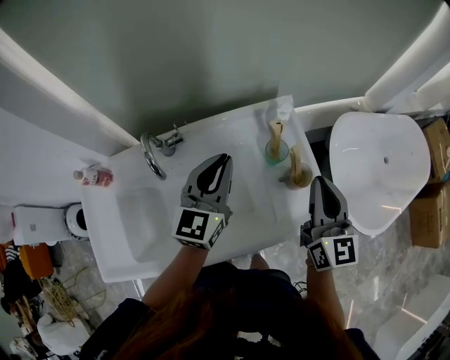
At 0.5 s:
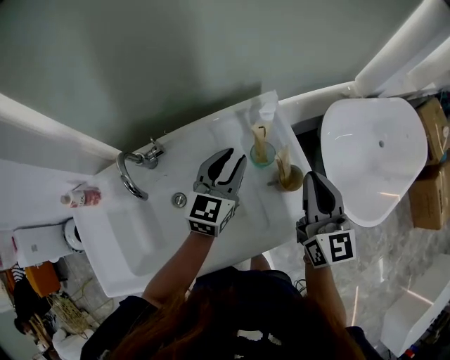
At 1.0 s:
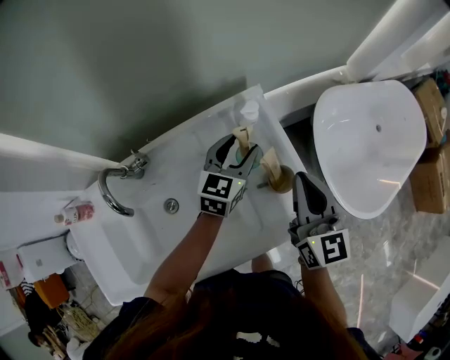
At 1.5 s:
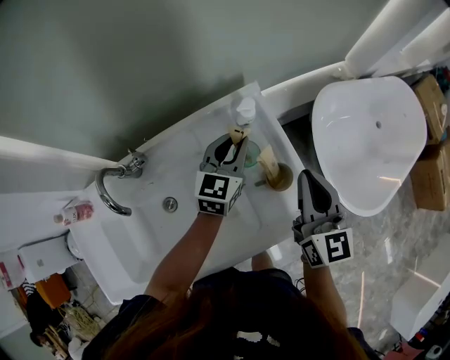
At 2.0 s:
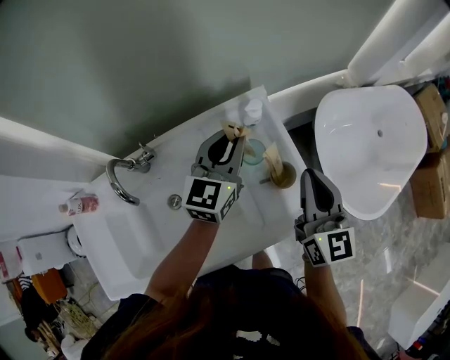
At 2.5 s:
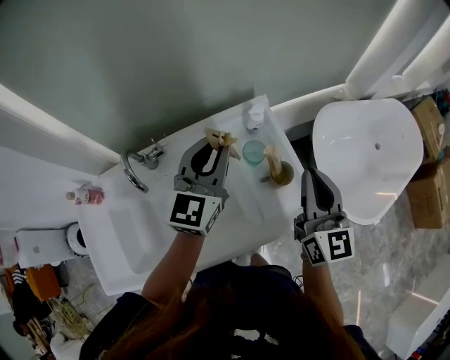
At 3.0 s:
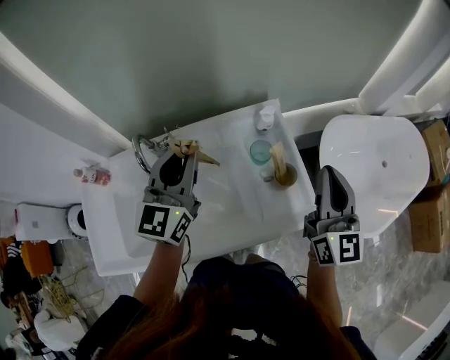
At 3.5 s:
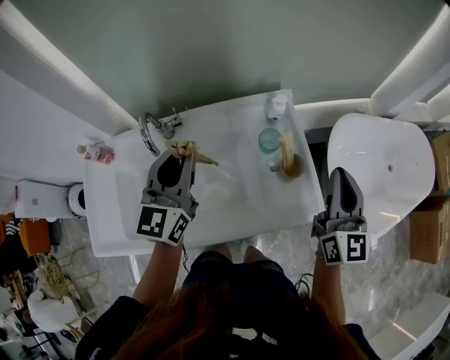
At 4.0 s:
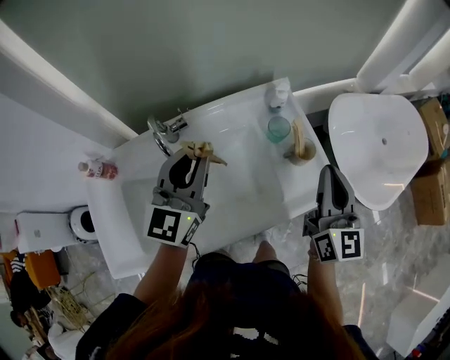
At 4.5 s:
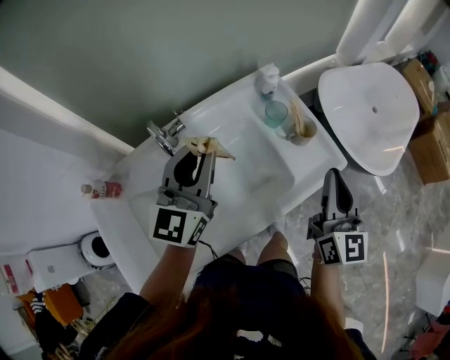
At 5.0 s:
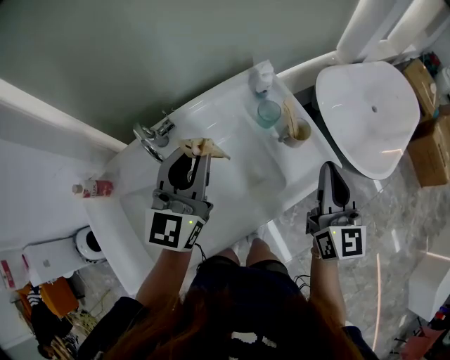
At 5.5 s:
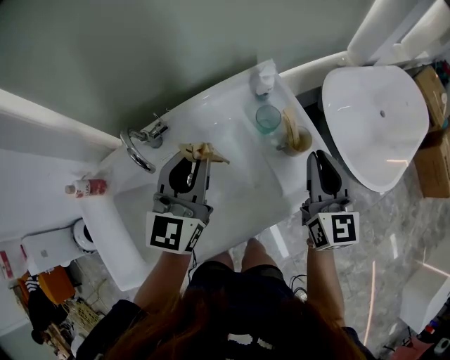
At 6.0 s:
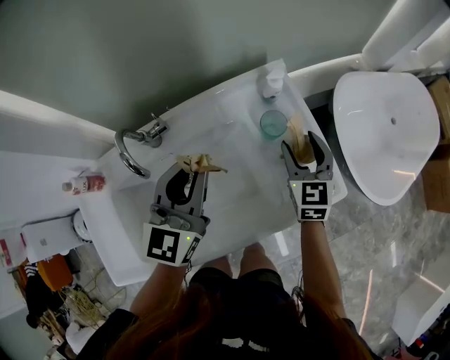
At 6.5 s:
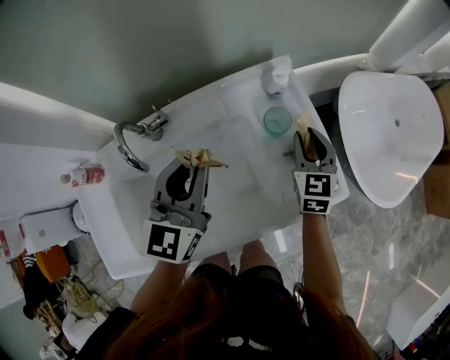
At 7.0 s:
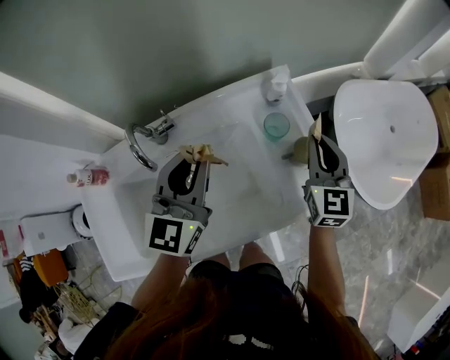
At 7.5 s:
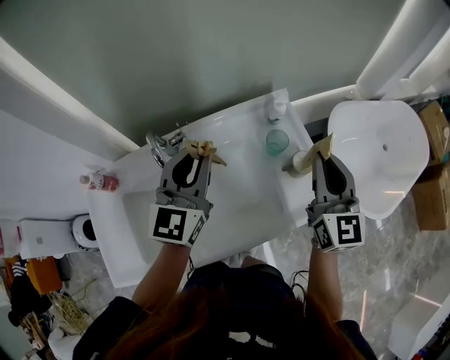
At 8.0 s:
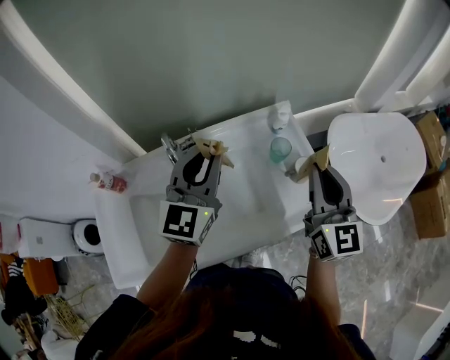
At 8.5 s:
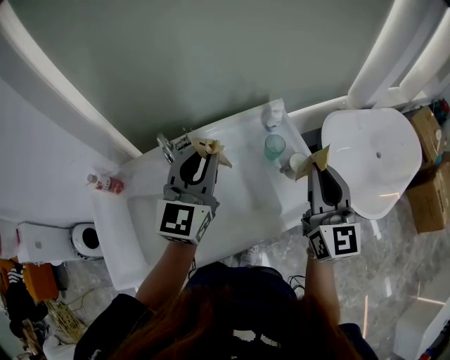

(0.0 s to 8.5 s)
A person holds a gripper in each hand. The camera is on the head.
0.0 s - 2.0 s: The left gripper goes roughly 15 cm forward and to the right, and opens, then closes again. The right gripper moves some 5 cm.
2.0 s - 4.0 s: The right gripper heads backward, covering roughly 10 cm; the left gripper goes approximately 25 cm backward, to the left and upward.
4.0 s - 6.5 s: The left gripper goes roughly 10 cm downward and forward. Meanwhile the right gripper travels downward and forward by about 25 cm, turns by roughly 30 degrees, and opens its fingers.
6.5 s - 8.5 s: The right gripper heads upward and backward, covering about 30 cm, and rotates roughly 30 degrees. The left gripper is displaced upward by some 10 cm.

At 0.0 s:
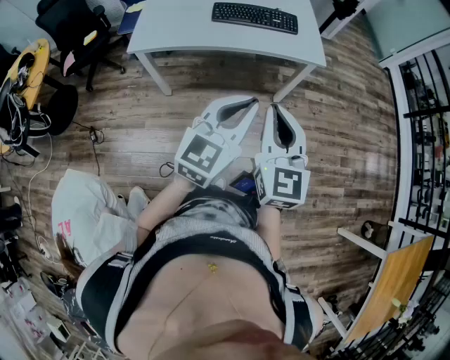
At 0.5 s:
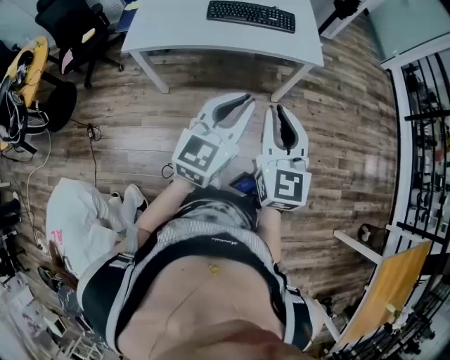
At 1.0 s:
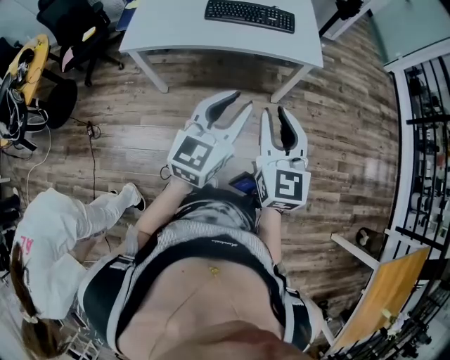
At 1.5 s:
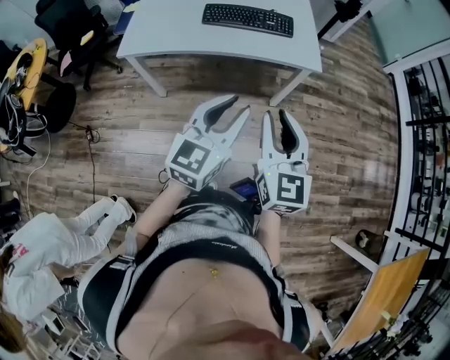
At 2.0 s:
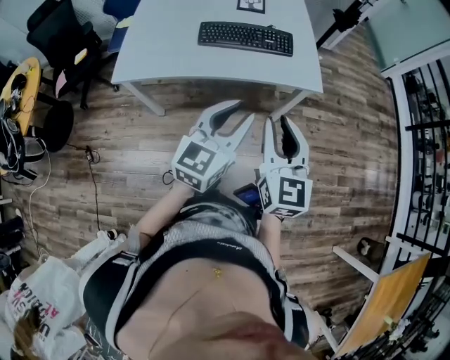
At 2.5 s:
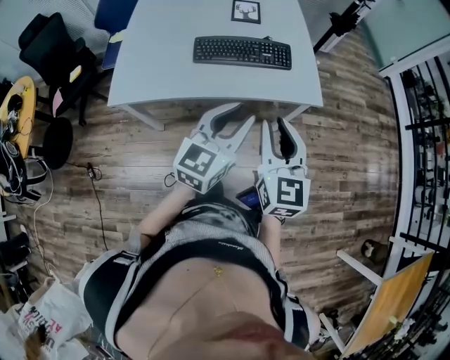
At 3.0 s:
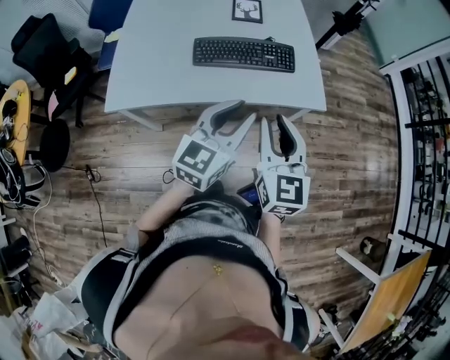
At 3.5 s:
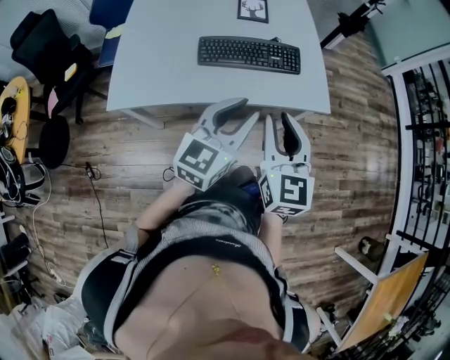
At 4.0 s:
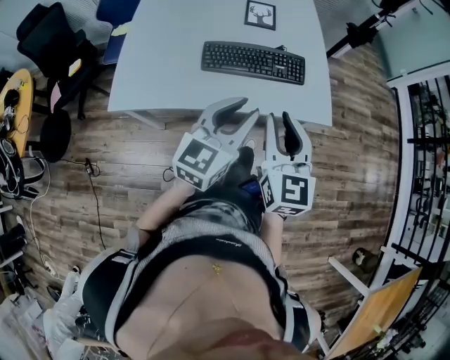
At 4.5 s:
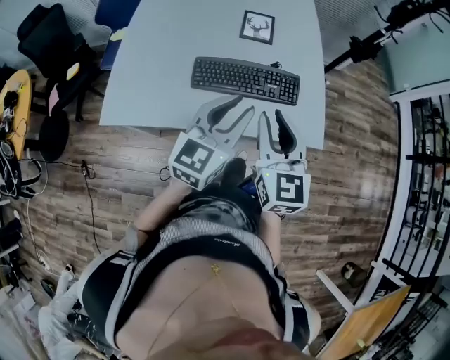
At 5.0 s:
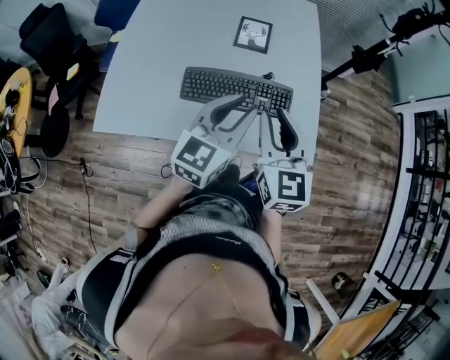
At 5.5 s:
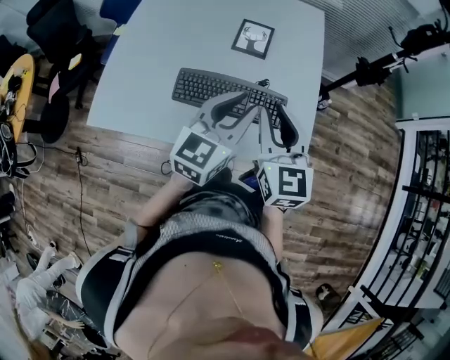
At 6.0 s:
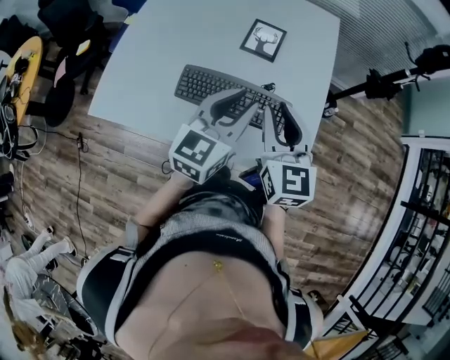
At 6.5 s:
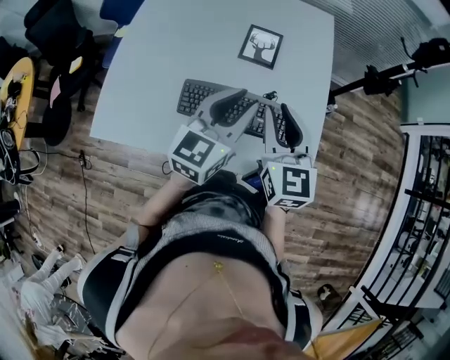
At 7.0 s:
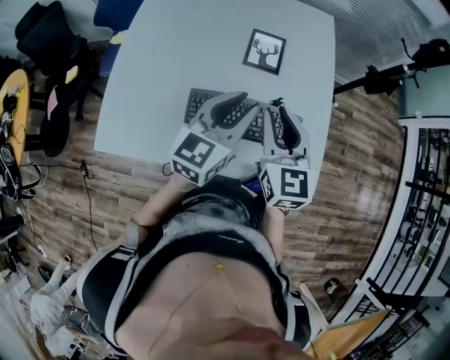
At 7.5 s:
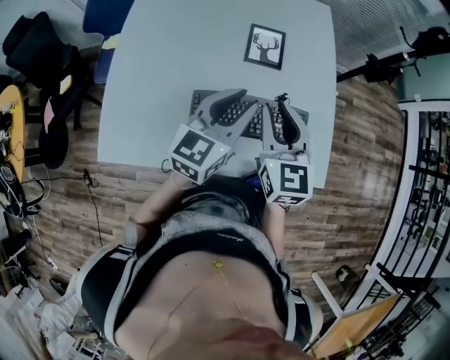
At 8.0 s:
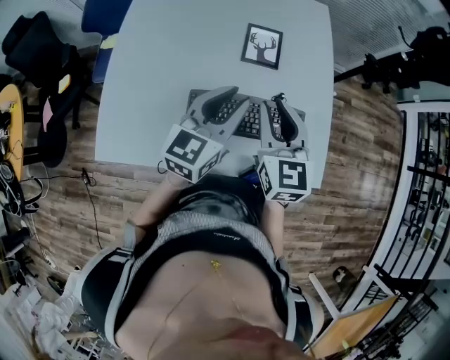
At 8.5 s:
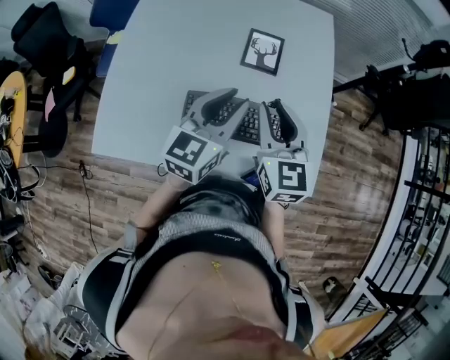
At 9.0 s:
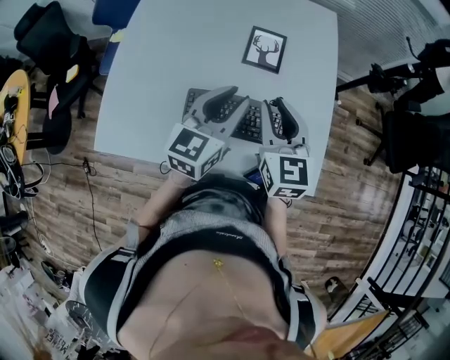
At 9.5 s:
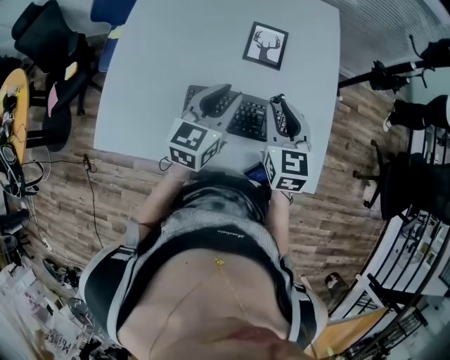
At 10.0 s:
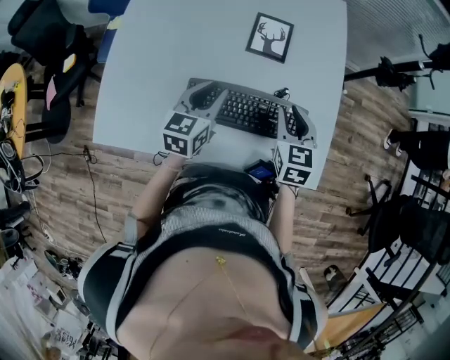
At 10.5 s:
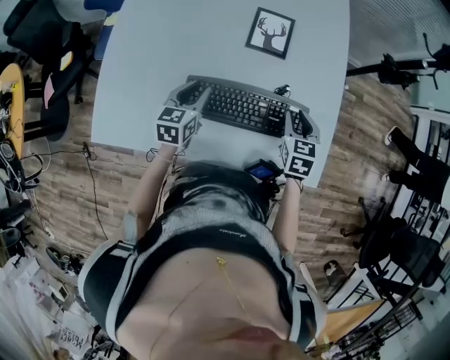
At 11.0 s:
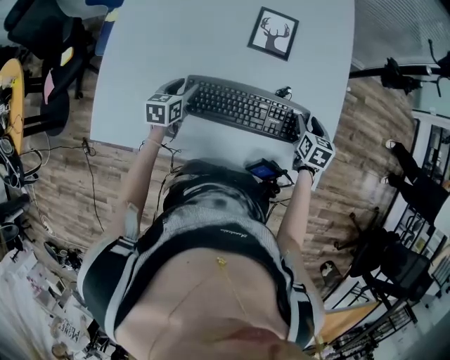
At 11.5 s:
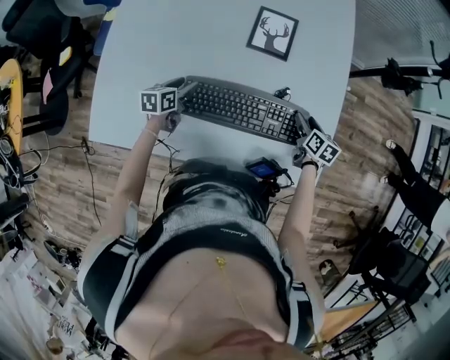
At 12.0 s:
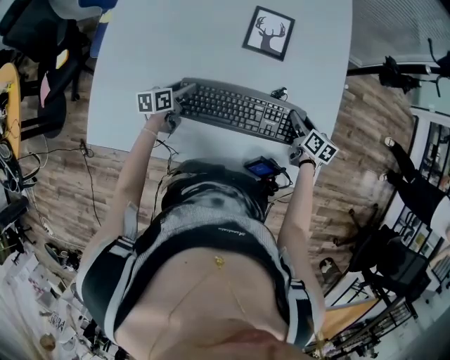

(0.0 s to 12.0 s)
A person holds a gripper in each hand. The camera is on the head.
0.0 s - 2.0 s: The two grippers go some 15 cm forward. The right gripper opens its fingers.
2.0 s - 4.0 s: The grippers both shift forward and to the left by some 20 cm.
4.0 s - 6.0 s: The grippers both shift forward by approximately 25 cm.
6.0 s - 8.0 s: Both grippers travel together to the left and forward, approximately 10 cm.
8.0 s - 10.0 s: The left gripper moves downward, roughly 10 cm. The right gripper goes approximately 15 cm downward and to the right.
10.0 s - 12.0 s: The left gripper goes some 25 cm downward and to the left, rotates some 40 degrees, and opens; the right gripper goes about 25 cm downward and to the right, changes its angle by roughly 40 degrees, and opens up.

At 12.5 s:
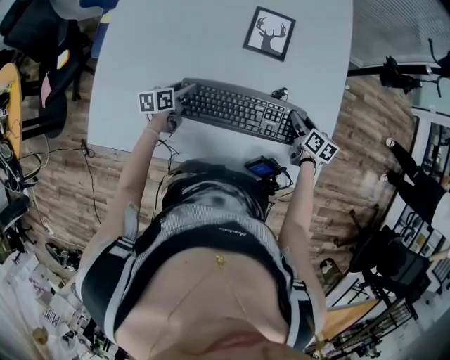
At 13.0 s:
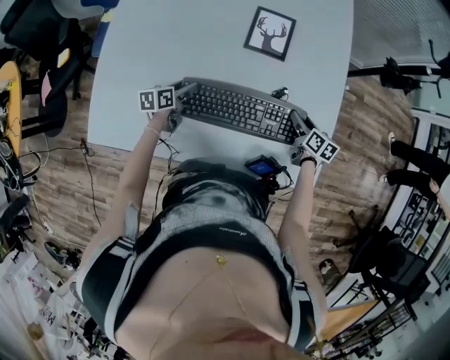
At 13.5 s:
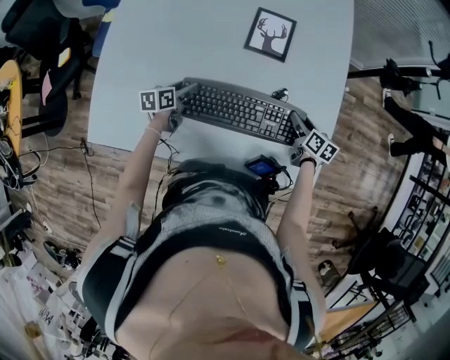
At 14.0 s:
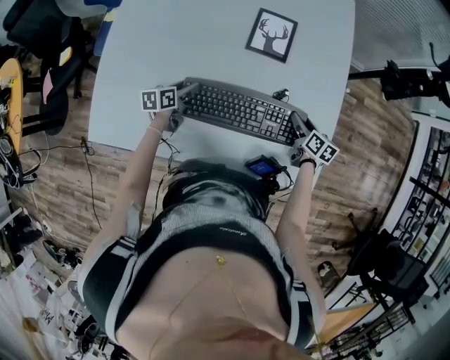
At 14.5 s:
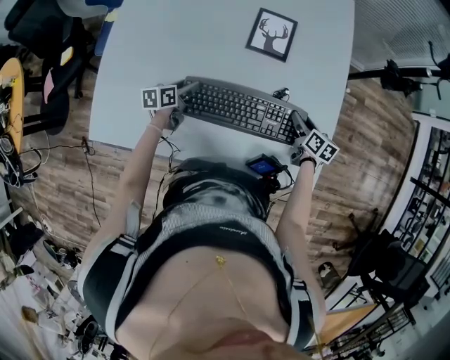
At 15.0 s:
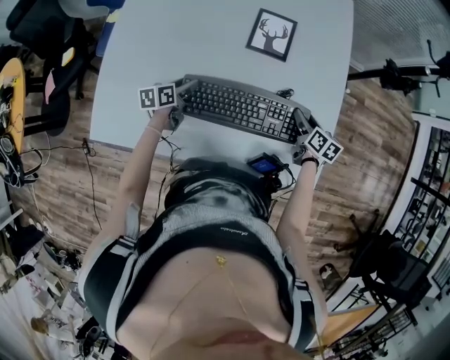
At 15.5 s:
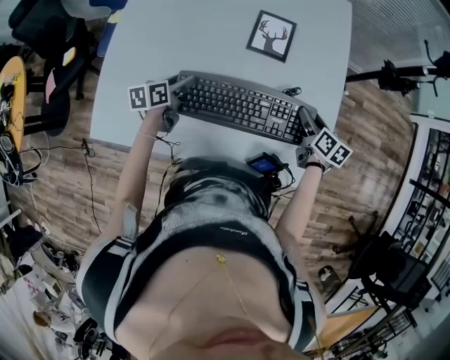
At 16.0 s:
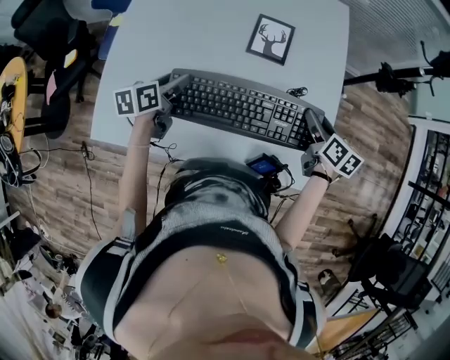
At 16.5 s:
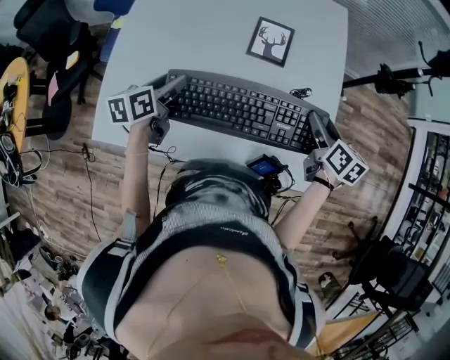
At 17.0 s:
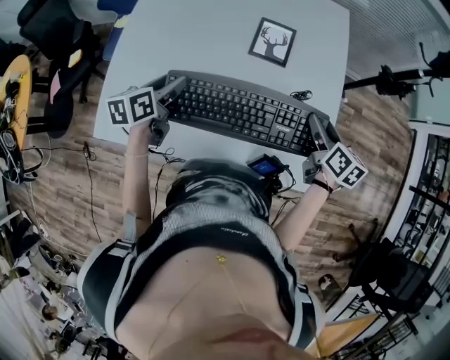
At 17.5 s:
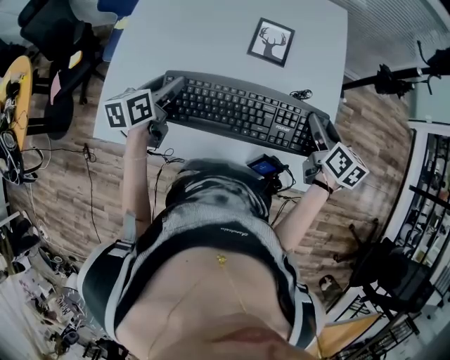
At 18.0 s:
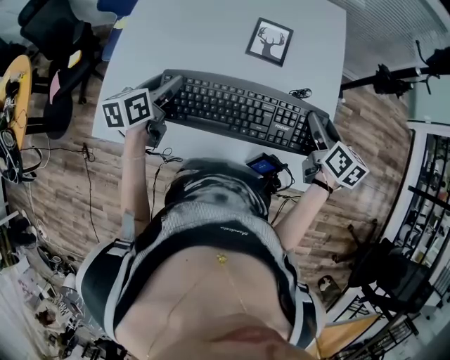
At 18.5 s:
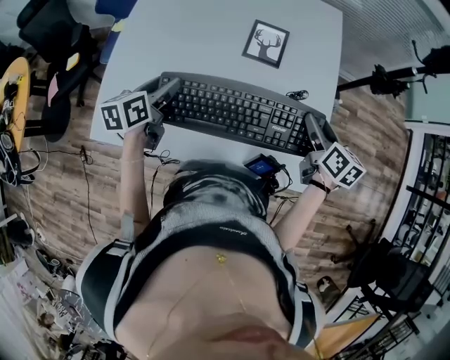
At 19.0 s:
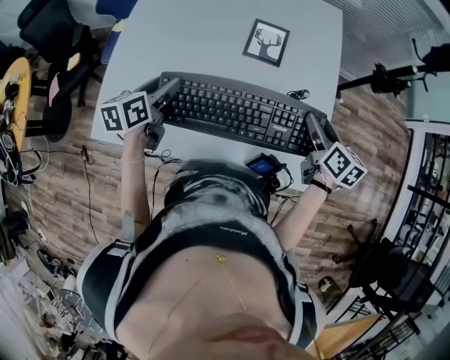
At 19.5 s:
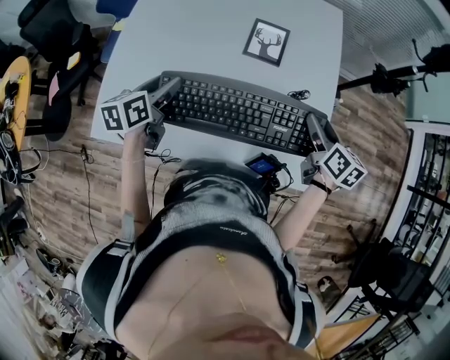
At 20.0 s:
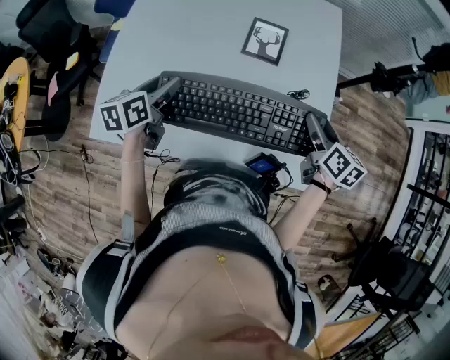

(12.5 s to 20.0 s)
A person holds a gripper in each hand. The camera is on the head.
12.5 s - 14.5 s: Both grippers stay about where they are.
14.5 s - 16.5 s: The grippers both shift upward by some 20 cm.
16.5 s - 18.0 s: The grippers stay close to where they were, moving slightly.
18.0 s - 20.0 s: Neither gripper changes place.
